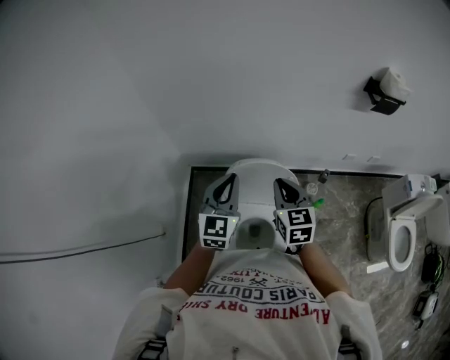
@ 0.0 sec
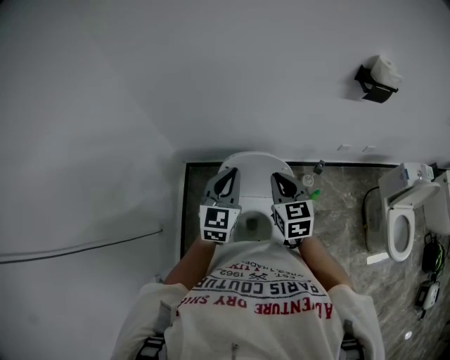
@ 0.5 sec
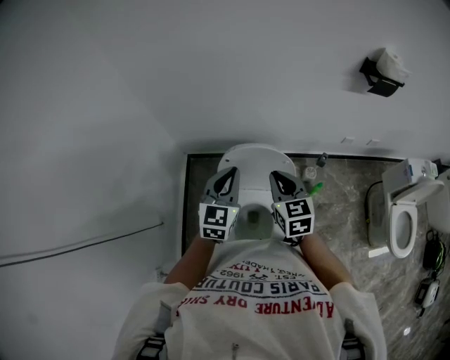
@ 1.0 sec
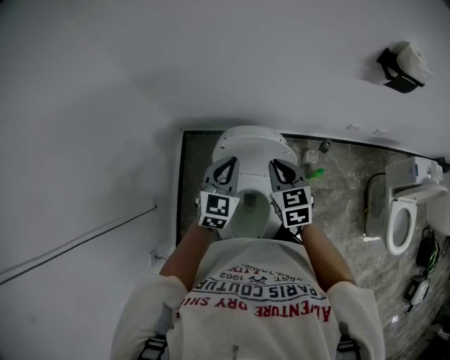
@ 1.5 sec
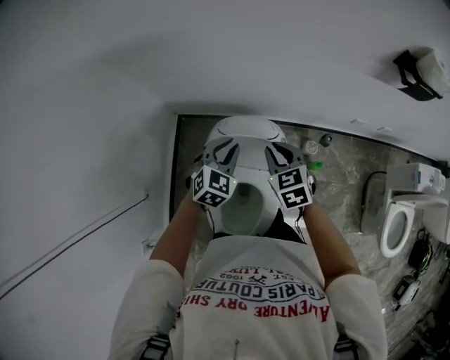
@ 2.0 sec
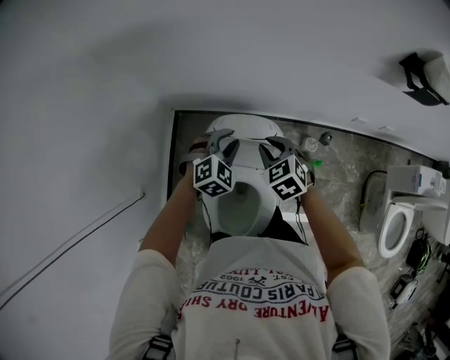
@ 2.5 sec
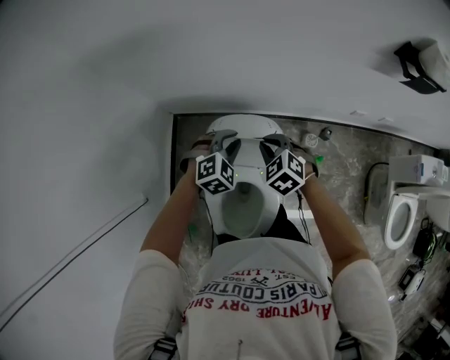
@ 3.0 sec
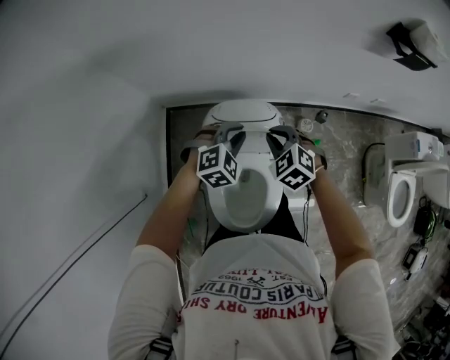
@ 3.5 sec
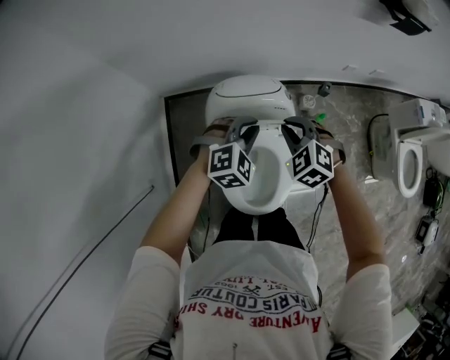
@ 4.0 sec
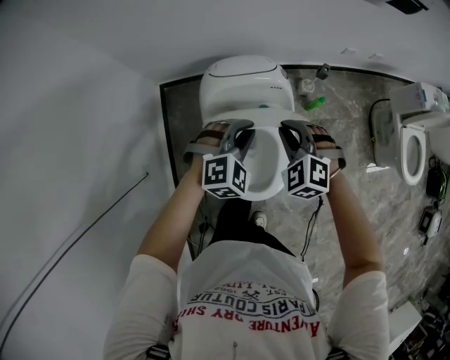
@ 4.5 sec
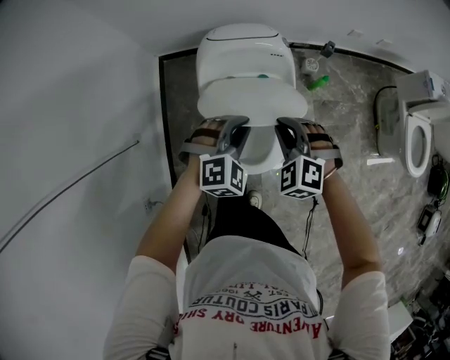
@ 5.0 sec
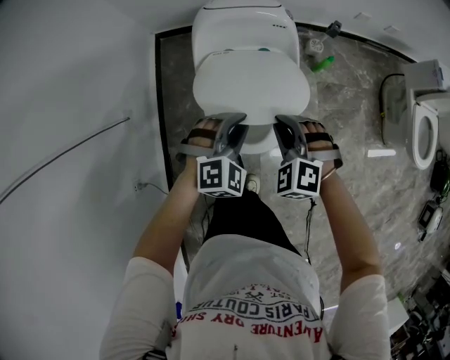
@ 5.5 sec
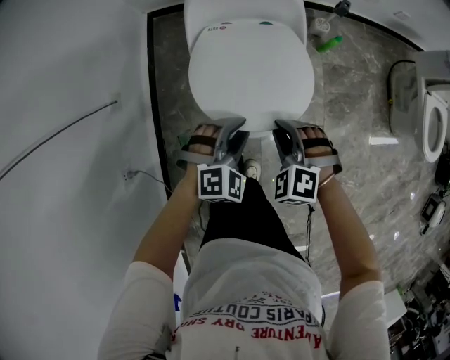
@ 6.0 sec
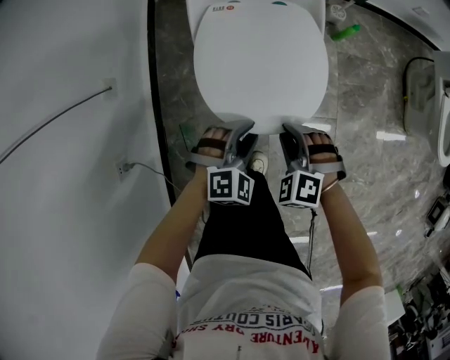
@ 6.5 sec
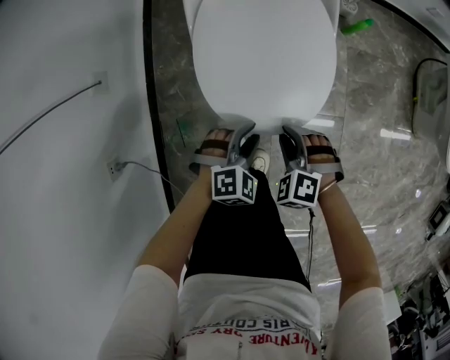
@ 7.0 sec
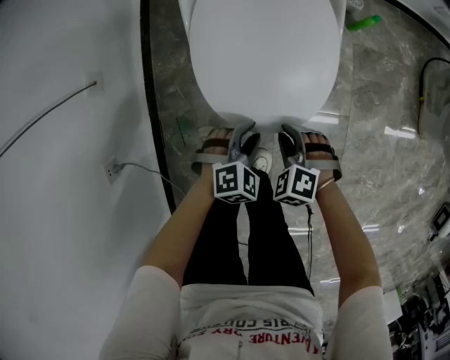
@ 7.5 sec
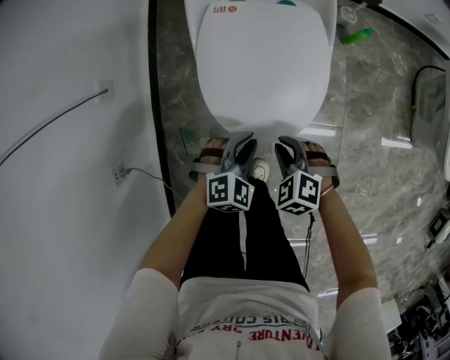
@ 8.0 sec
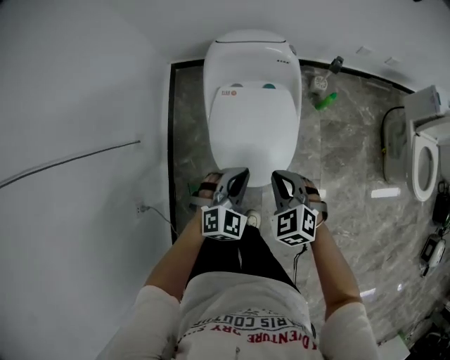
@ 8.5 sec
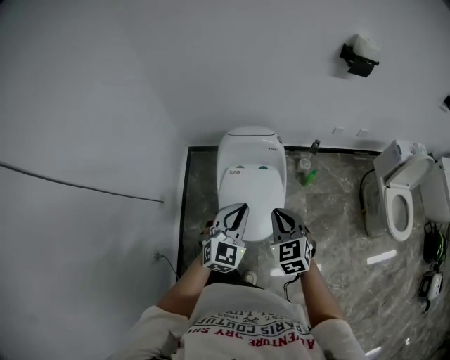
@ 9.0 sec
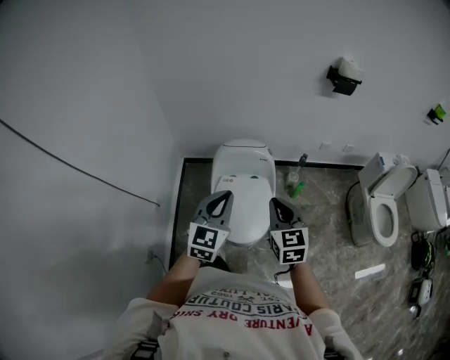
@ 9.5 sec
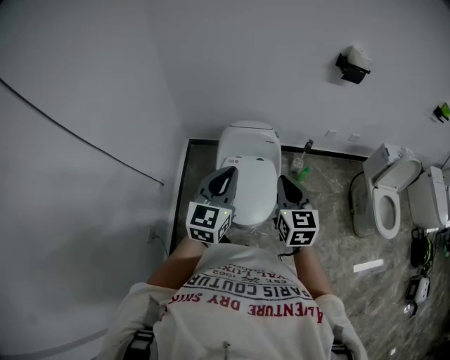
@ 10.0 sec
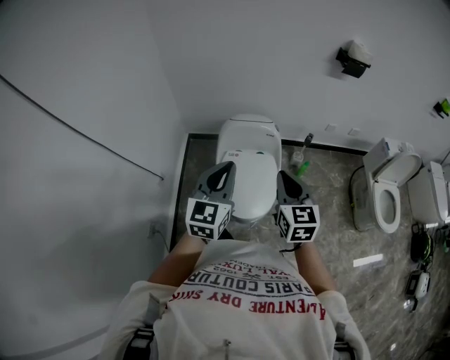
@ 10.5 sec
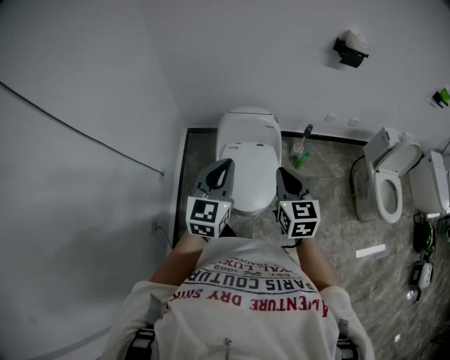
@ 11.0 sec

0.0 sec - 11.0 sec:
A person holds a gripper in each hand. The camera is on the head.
0.0 sec - 2.0 sec: The right gripper heads downward and forward, covering roughly 15 cm, and swivels roughly 20 degrees, while the left gripper heads downward, forward and to the right, covering roughly 20 cm, and angles its fingers downward, by about 30 degrees.
2.0 sec - 3.5 sec: The left gripper changes its angle by approximately 30 degrees, while the right gripper changes its angle by approximately 30 degrees.
3.5 sec - 5.5 sec: The grippers both shift backward by approximately 35 cm.
5.5 sec - 7.5 sec: The grippers both shift downward and backward by roughly 35 cm. The left gripper turns by about 20 degrees.
7.5 sec - 9.0 sec: The grippers both shift upward by approximately 50 cm. The right gripper tips its fingers upward by about 40 degrees; the left gripper points its fingers about 40 degrees further upward, and closes.
9.0 sec - 11.0 sec: The right gripper is displaced upward and backward by approximately 10 cm, and rotates approximately 20 degrees; the left gripper moves upward, backward and to the left, some 15 cm, and swivels about 30 degrees.

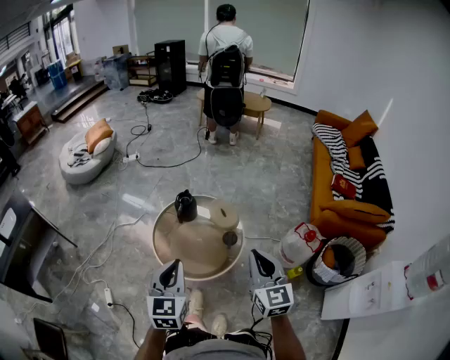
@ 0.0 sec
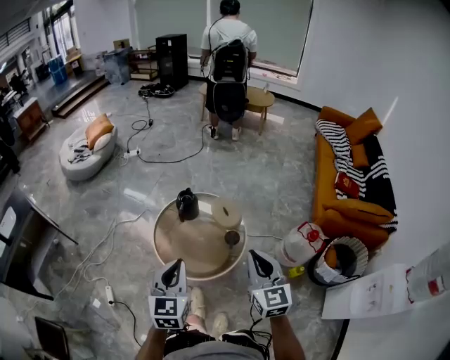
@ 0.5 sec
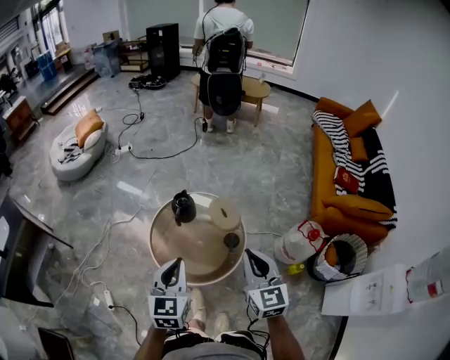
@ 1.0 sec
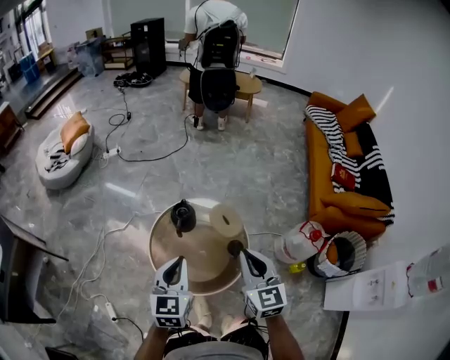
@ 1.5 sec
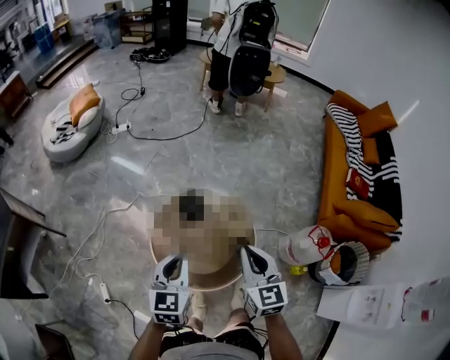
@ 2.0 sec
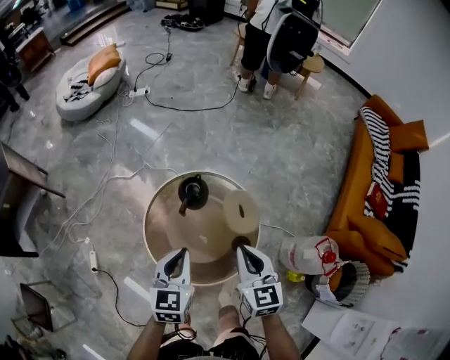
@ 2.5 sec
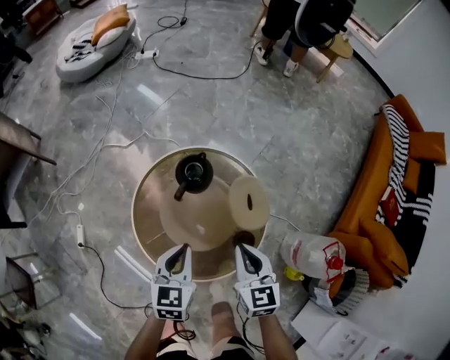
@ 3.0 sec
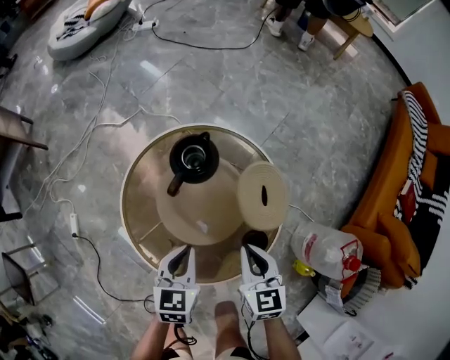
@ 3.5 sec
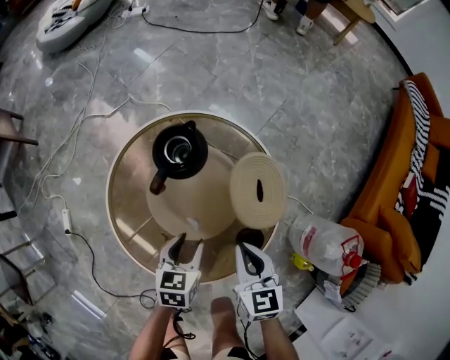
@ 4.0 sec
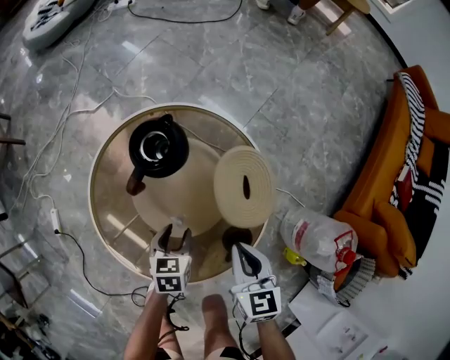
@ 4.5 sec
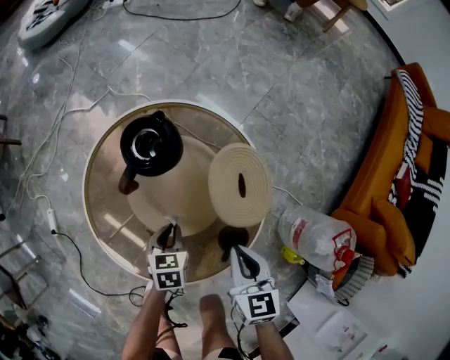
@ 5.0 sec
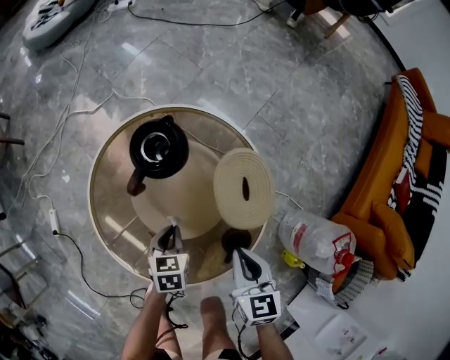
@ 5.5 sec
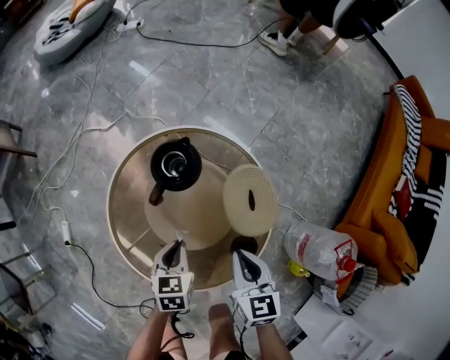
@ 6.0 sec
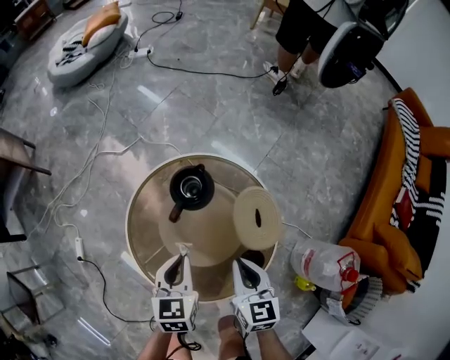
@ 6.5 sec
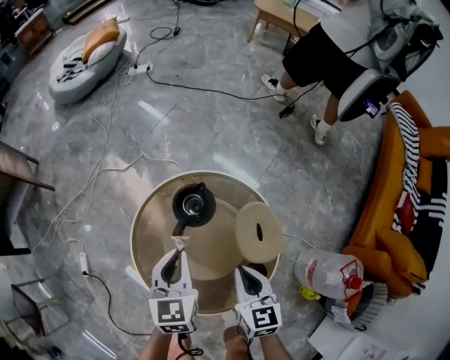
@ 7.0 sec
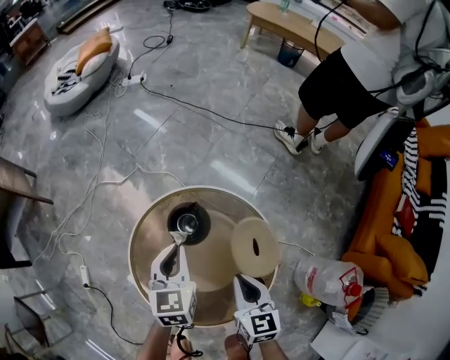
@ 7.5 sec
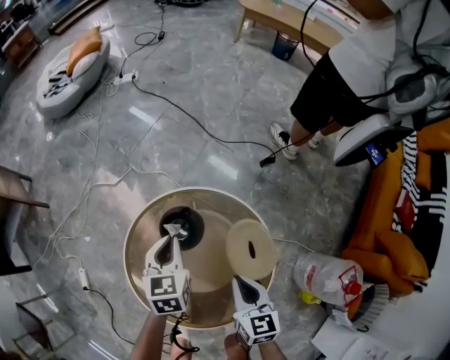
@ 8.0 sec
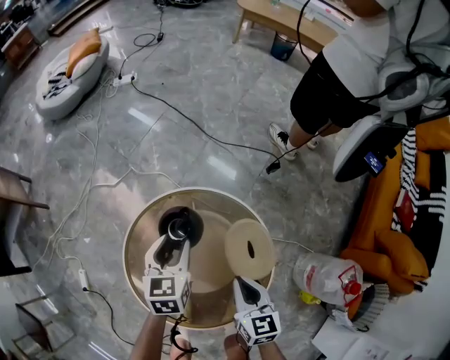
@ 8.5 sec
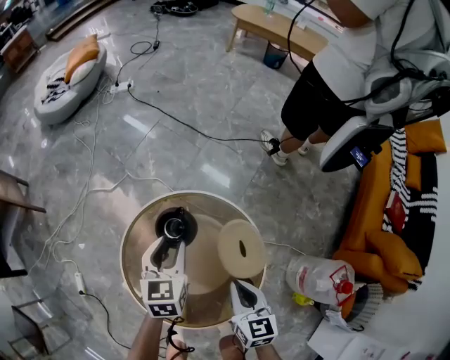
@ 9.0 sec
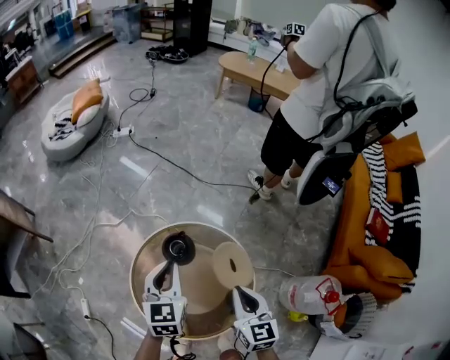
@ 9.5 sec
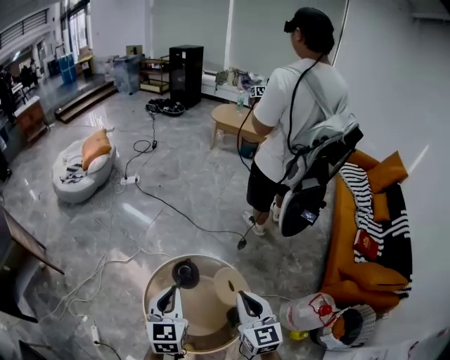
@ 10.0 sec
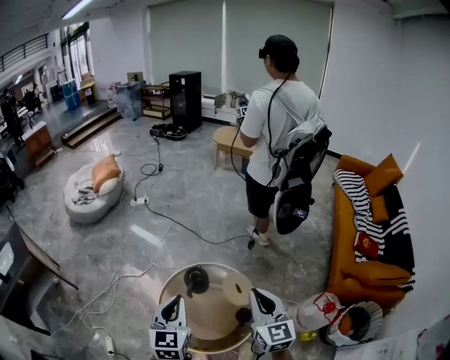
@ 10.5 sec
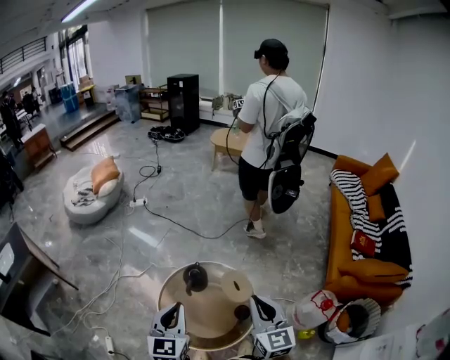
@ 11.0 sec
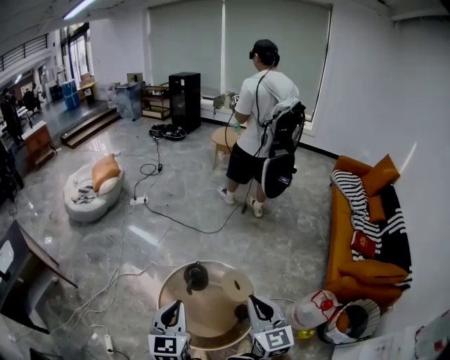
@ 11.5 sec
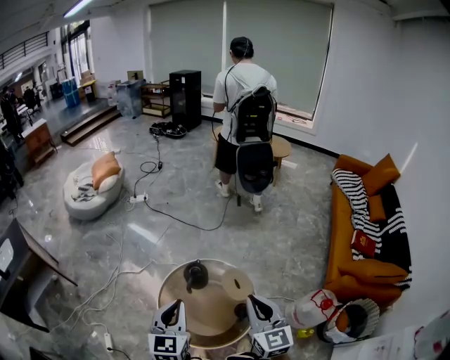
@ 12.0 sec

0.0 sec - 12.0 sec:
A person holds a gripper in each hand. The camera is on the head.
0.0 sec - 2.0 sec: The left gripper heads forward, covering about 25 cm; the right gripper shifts some 25 cm forward and to the left.
2.0 sec - 4.0 sec: Both grippers travel together downward, approximately 50 cm. The left gripper turns by approximately 40 degrees, and opens its fingers. The right gripper rotates some 30 degrees.
4.0 sec - 6.0 sec: The left gripper moves about 10 cm downward and comes back, and closes its fingers.
6.0 sec - 8.0 sec: The left gripper heads forward and upward, covering some 25 cm. The right gripper travels forward by about 10 cm.
8.0 sec - 10.0 sec: The right gripper heads upward, covering approximately 35 cm, and swivels about 20 degrees, while the left gripper goes roughly 40 cm upward and backward, swivels some 20 degrees, and opens, then closes once more.
10.0 sec - 12.0 sec: The two grippers go roughly 15 cm backward and upward.

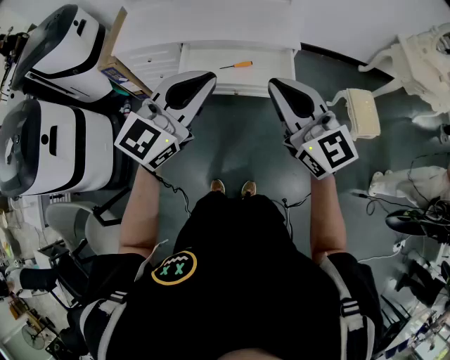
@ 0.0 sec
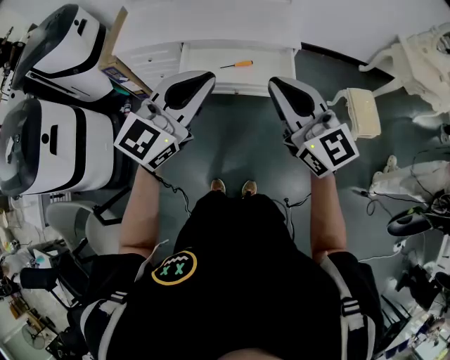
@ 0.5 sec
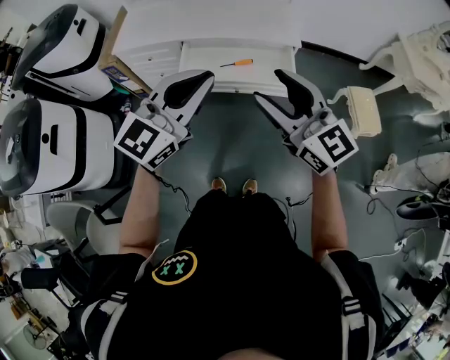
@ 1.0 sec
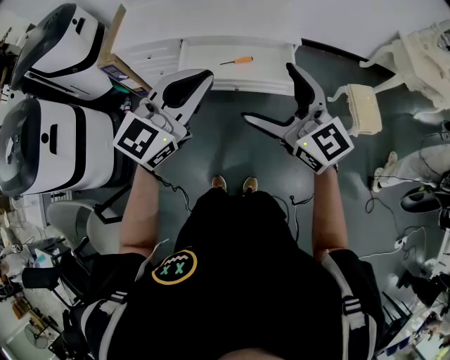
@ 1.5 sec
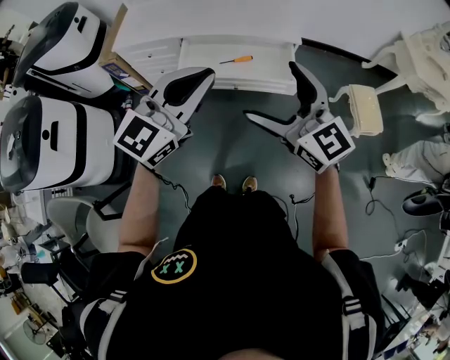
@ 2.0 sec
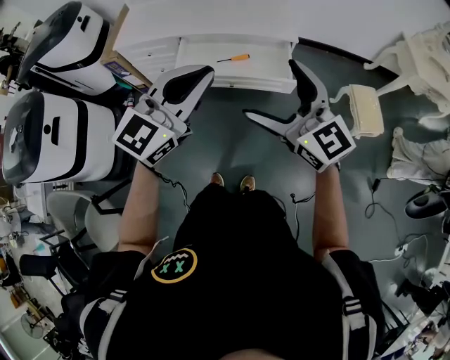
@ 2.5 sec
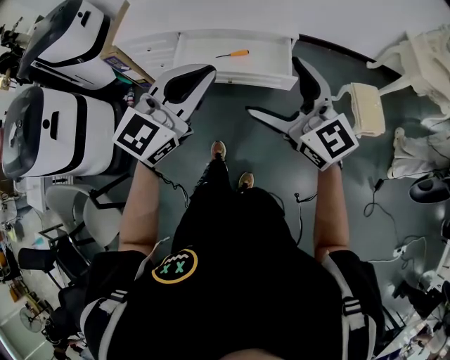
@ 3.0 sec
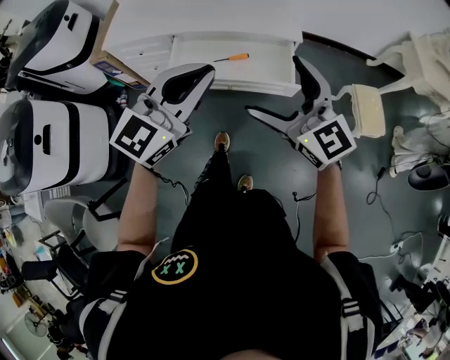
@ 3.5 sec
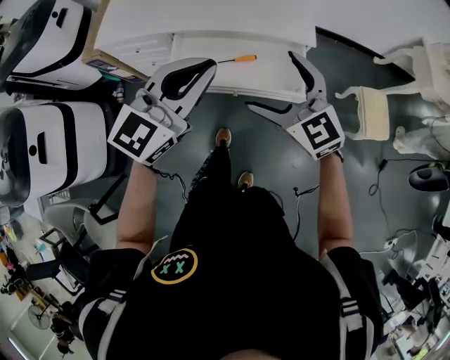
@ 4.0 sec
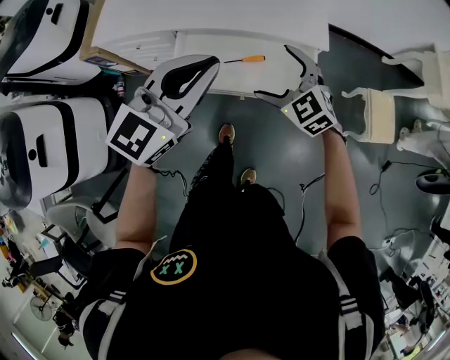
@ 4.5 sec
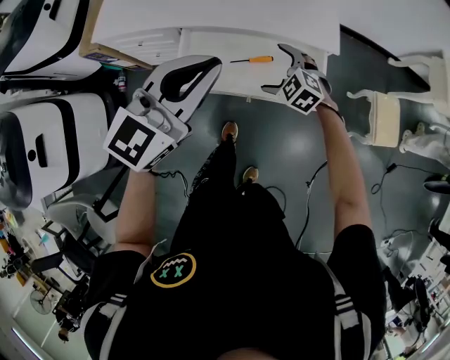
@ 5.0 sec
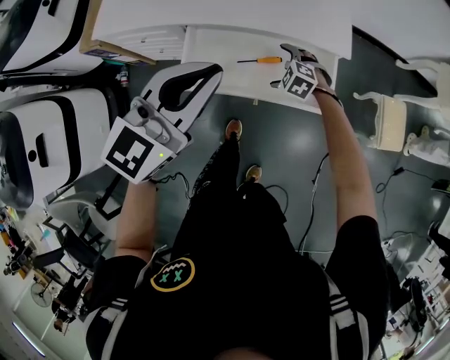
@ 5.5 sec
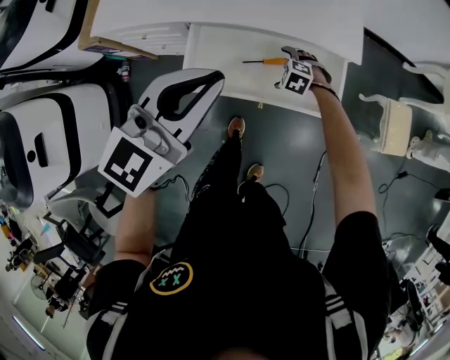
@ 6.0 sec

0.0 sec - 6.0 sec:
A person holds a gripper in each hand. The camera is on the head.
0.0 sec - 2.0 sec: The right gripper opens its fingers.
2.0 sec - 4.0 sec: The right gripper goes about 20 cm forward and downward. Meanwhile the left gripper goes roughly 15 cm forward.
4.0 sec - 6.0 sec: The right gripper moves downward and forward, roughly 40 cm, and points its fingers some 60 degrees further downward. Meanwhile the left gripper shifts approximately 10 cm forward and downward.
